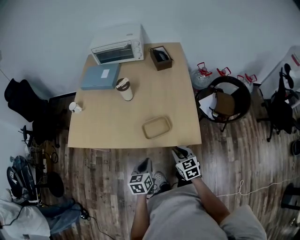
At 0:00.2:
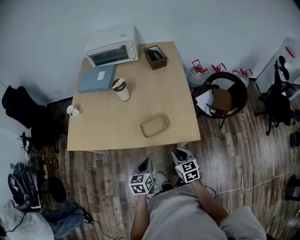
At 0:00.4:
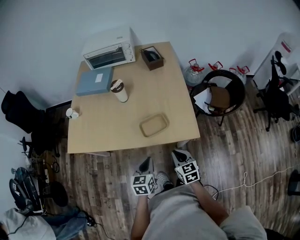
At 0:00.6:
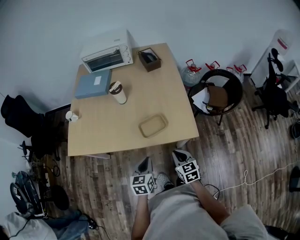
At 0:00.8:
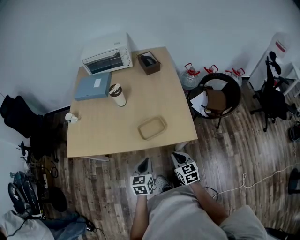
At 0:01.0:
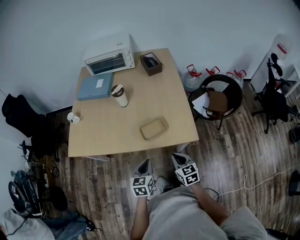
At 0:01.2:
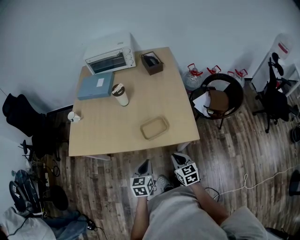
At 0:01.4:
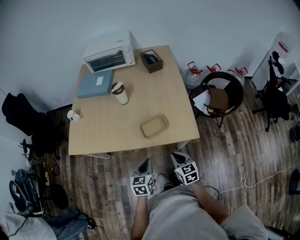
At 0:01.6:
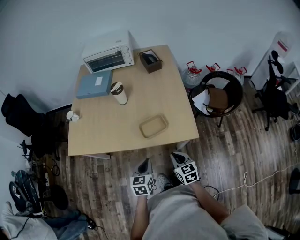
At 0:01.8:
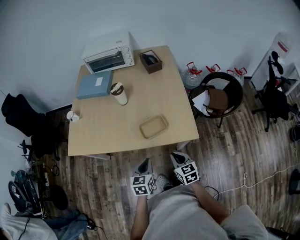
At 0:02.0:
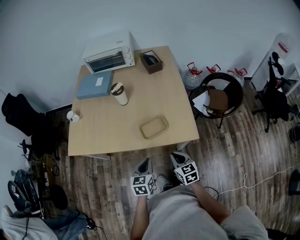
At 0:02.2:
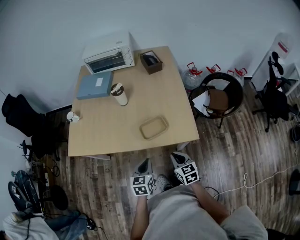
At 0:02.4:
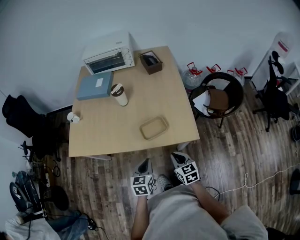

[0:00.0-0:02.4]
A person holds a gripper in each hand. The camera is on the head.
0:00.0 to 0:01.2: The right gripper travels backward by some 5 cm.
0:01.2 to 0:02.4: Both grippers stay about where they are.

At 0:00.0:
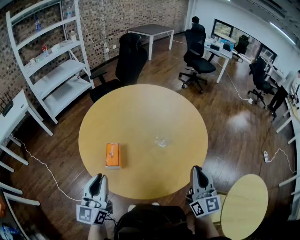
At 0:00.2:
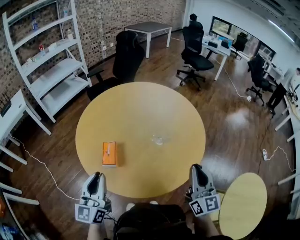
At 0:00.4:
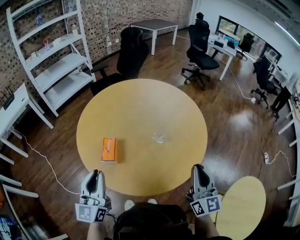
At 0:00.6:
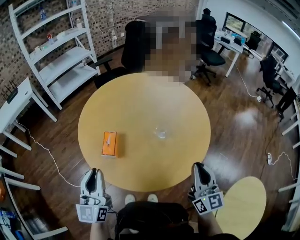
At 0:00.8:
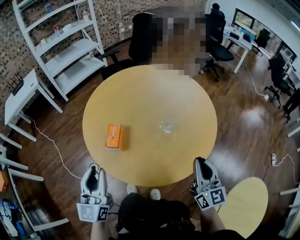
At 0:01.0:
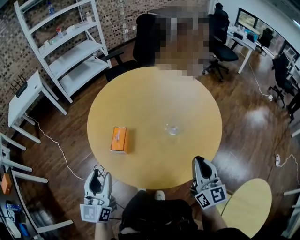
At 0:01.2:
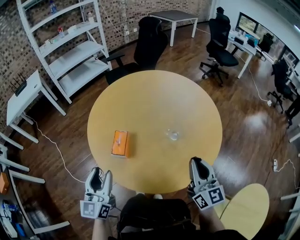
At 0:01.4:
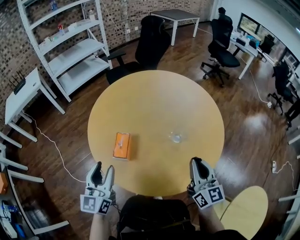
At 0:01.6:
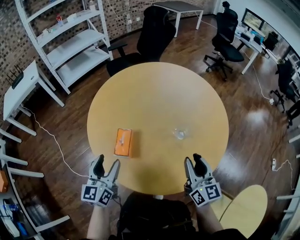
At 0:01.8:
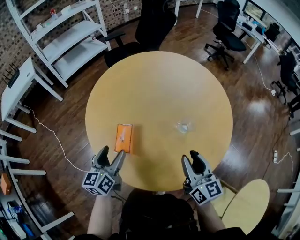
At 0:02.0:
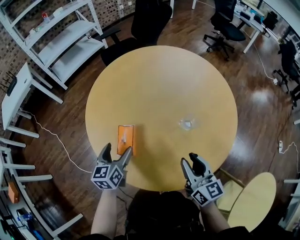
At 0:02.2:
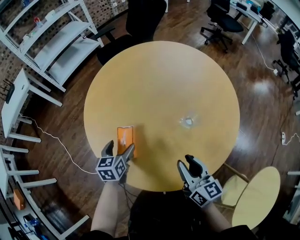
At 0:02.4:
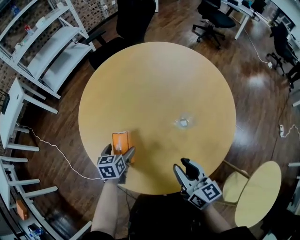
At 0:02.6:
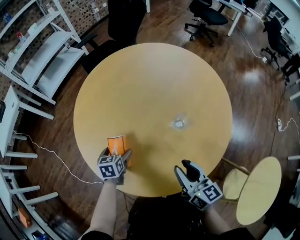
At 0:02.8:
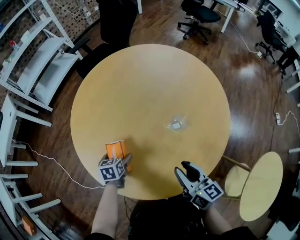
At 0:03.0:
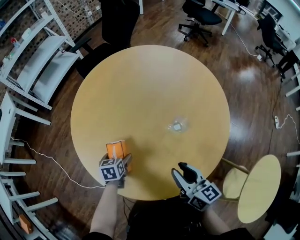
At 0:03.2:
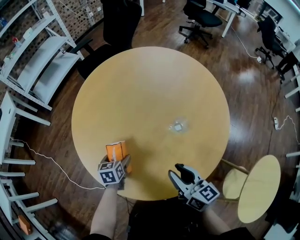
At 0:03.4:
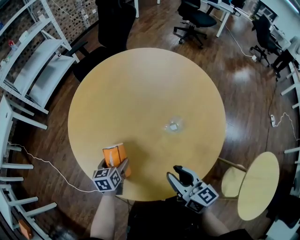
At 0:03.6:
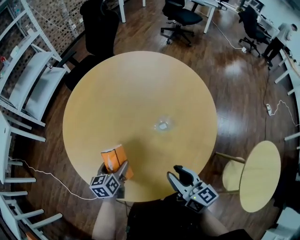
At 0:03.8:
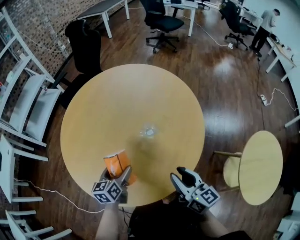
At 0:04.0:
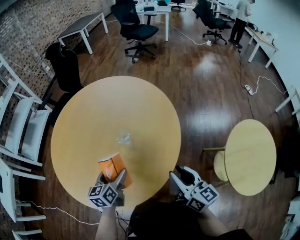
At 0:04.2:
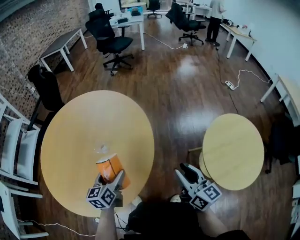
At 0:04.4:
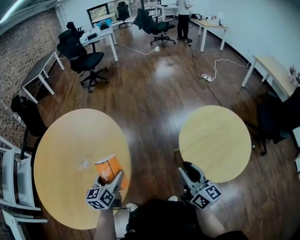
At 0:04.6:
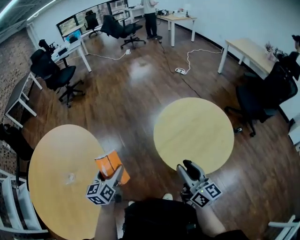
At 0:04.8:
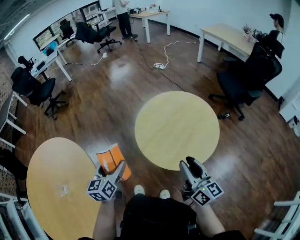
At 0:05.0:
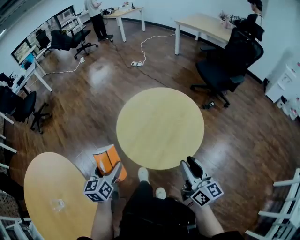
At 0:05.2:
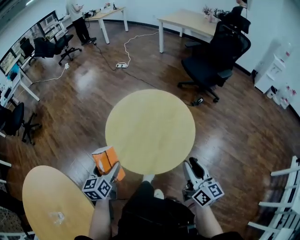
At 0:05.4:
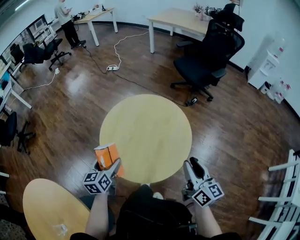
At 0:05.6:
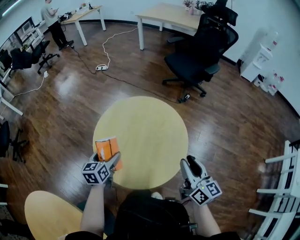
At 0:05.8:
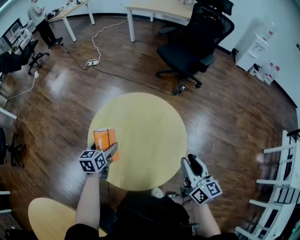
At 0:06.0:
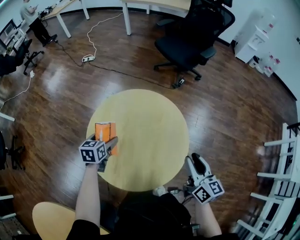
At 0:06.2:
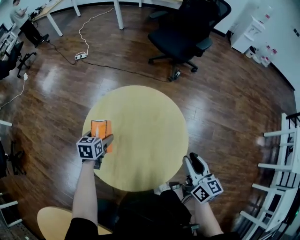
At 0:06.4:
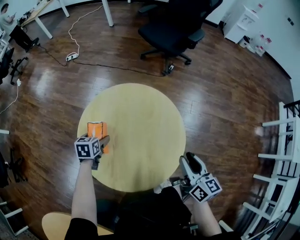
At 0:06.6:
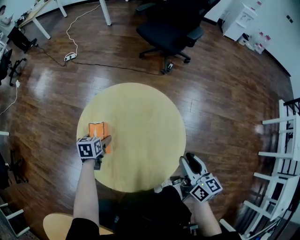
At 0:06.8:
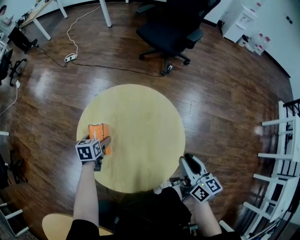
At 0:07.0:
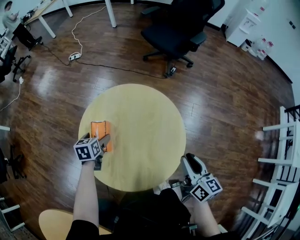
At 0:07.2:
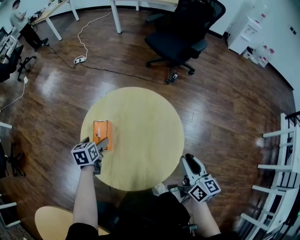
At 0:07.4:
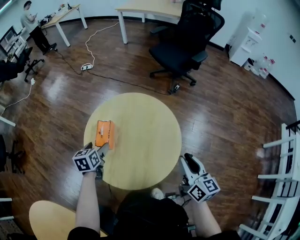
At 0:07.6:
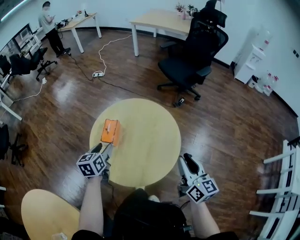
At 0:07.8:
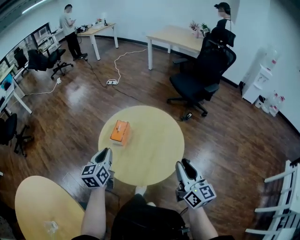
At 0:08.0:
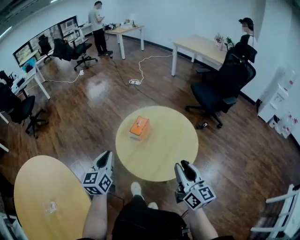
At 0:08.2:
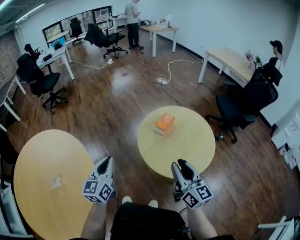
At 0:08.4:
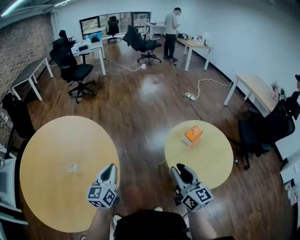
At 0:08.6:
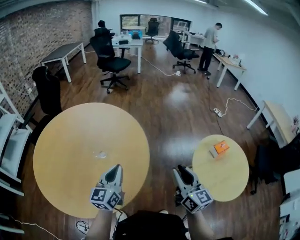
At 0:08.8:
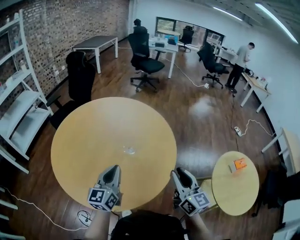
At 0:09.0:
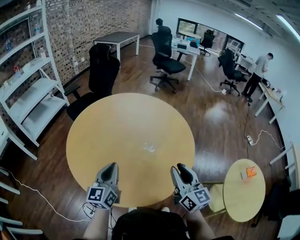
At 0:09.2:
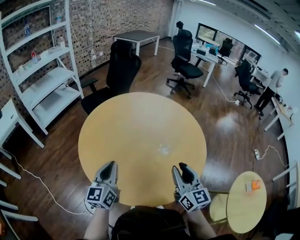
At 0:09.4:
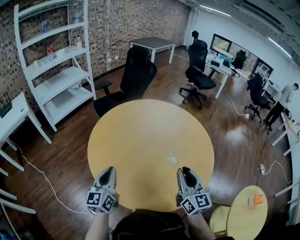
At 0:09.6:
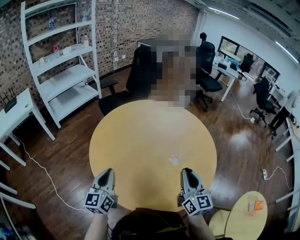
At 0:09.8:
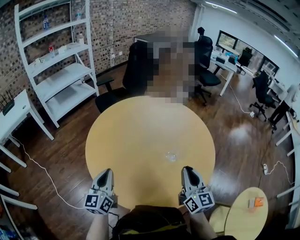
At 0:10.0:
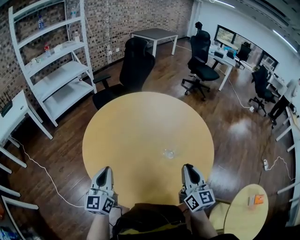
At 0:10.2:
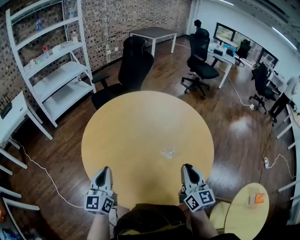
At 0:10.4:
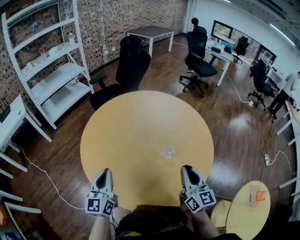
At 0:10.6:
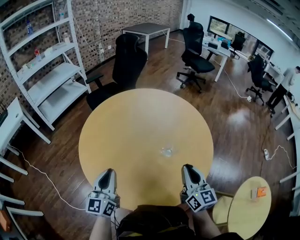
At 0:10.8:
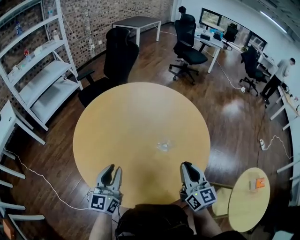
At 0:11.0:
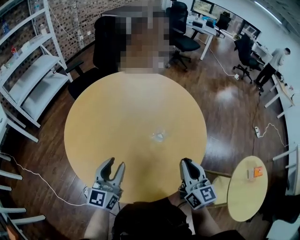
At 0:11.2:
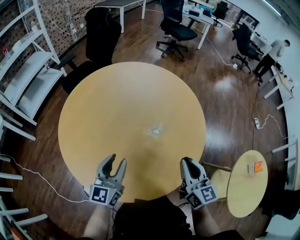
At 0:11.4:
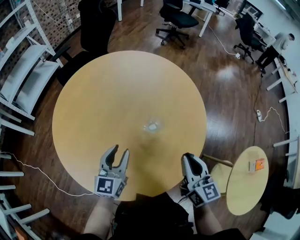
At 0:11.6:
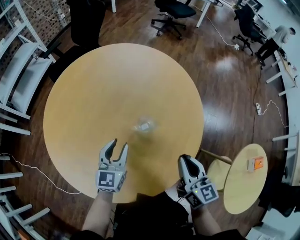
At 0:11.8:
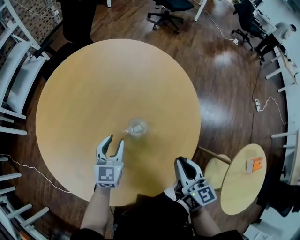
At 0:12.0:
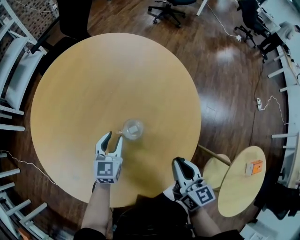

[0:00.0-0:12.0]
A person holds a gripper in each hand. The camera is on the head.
0:00.0 to 0:01.6: The two grippers go approximately 10 cm forward and downward. The left gripper opens its fingers. The right gripper turns by approximately 20 degrees, and opens.
0:01.6 to 0:03.0: The left gripper goes some 25 cm downward and forward, angles its fingers downward, by roughly 40 degrees, and opens up; the right gripper moves downward and to the left, some 10 cm.
0:03.0 to 0:04.4: Both grippers are carried about 40 cm. The left gripper points its fingers some 30 degrees further upward. The right gripper changes its angle by approximately 50 degrees.
0:04.4 to 0:06.0: The right gripper moves roughly 40 cm, and turns by some 70 degrees. The left gripper shifts by some 70 cm, and changes its angle by roughly 70 degrees.
0:06.0 to 0:07.6: The left gripper is displaced backward and upward by roughly 15 cm, swivels approximately 20 degrees, and closes its fingers; the right gripper travels upward by some 5 cm.
0:07.6 to 0:09.0: The pair of grippers is taken some 80 cm. The right gripper swivels about 90 degrees. The left gripper points its fingers approximately 30 degrees further upward, and closes.
0:09.0 to 0:10.4: The left gripper is displaced to the left by some 10 cm, and changes its angle by roughly 20 degrees. Meanwhile the right gripper moves forward, roughly 5 cm, and closes its fingers.
0:10.4 to 0:12.0: The right gripper moves downward and to the right, some 15 cm, and turns by approximately 20 degrees. The left gripper shifts roughly 35 cm to the right, forward and downward, and rotates roughly 30 degrees.

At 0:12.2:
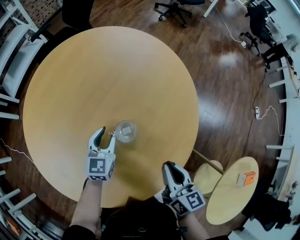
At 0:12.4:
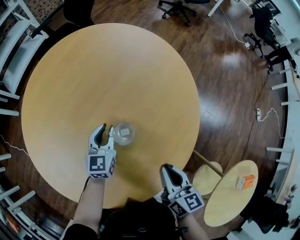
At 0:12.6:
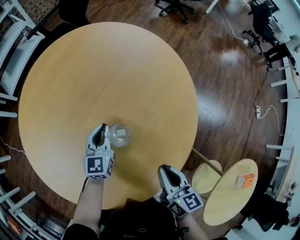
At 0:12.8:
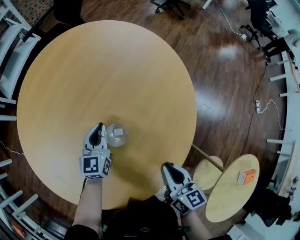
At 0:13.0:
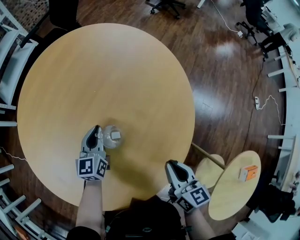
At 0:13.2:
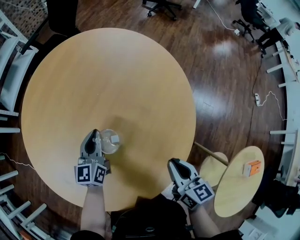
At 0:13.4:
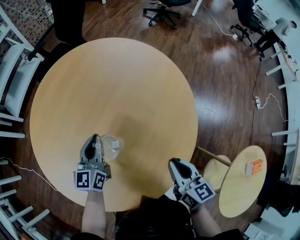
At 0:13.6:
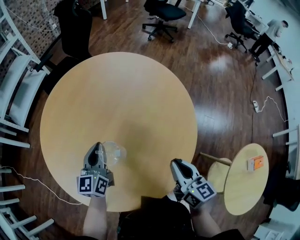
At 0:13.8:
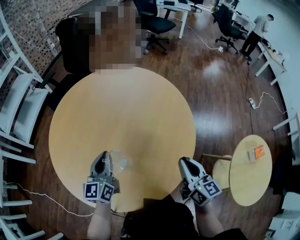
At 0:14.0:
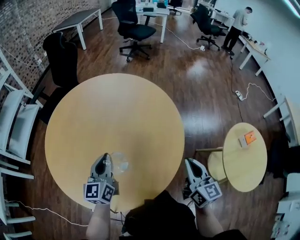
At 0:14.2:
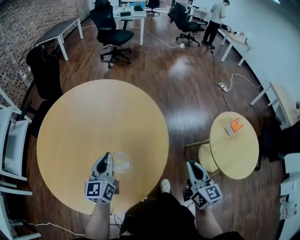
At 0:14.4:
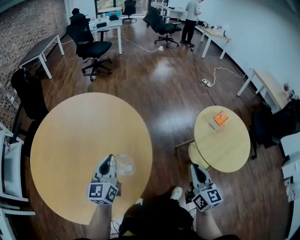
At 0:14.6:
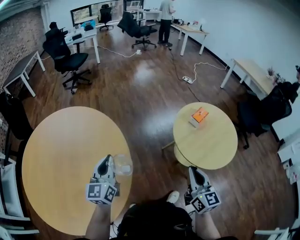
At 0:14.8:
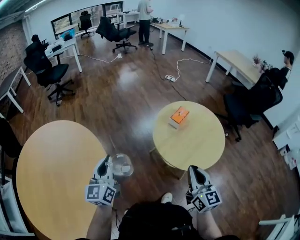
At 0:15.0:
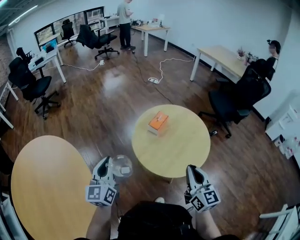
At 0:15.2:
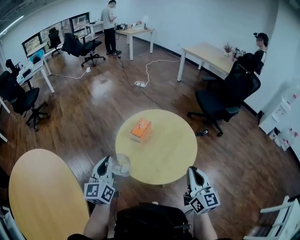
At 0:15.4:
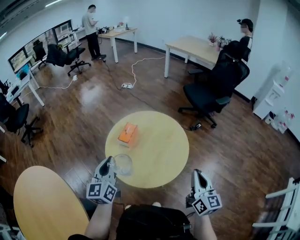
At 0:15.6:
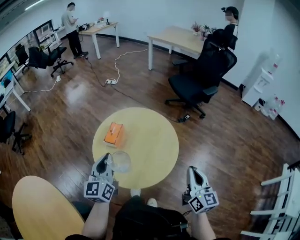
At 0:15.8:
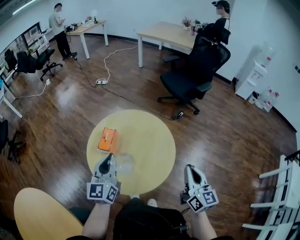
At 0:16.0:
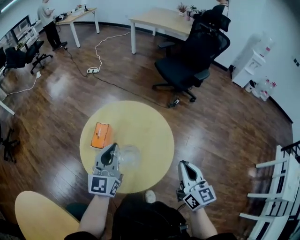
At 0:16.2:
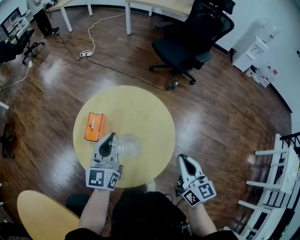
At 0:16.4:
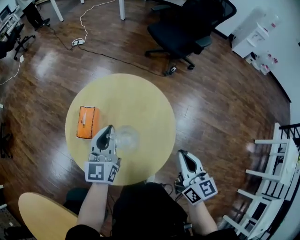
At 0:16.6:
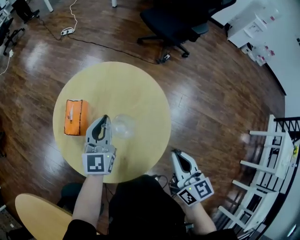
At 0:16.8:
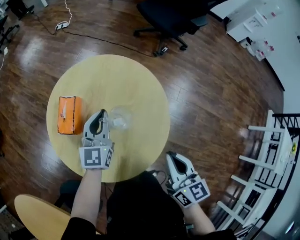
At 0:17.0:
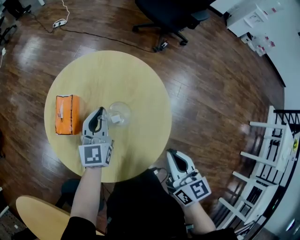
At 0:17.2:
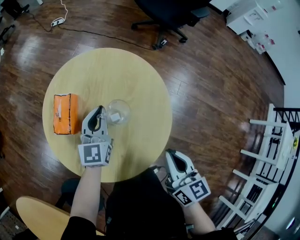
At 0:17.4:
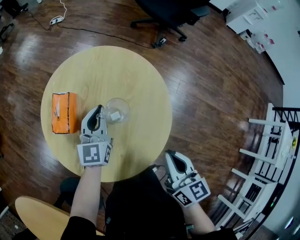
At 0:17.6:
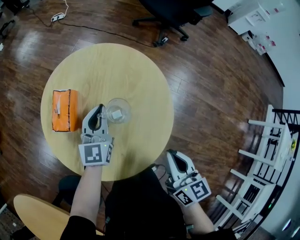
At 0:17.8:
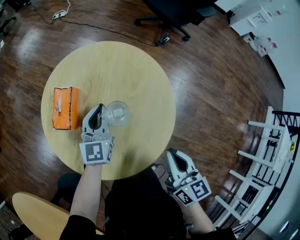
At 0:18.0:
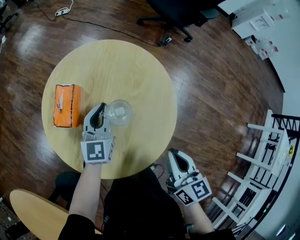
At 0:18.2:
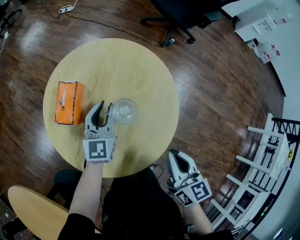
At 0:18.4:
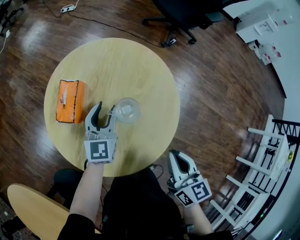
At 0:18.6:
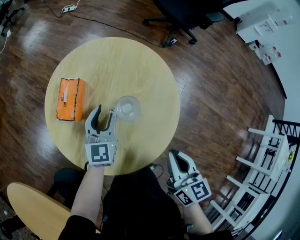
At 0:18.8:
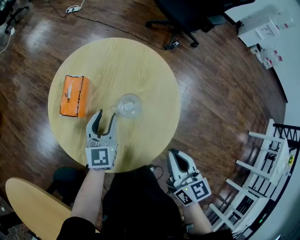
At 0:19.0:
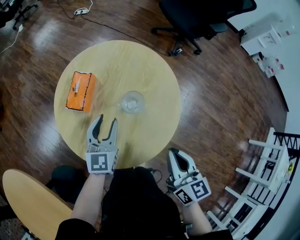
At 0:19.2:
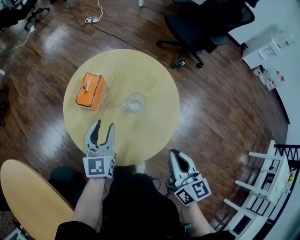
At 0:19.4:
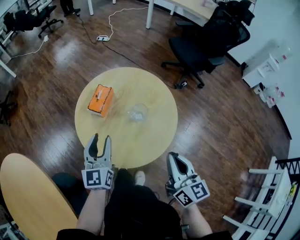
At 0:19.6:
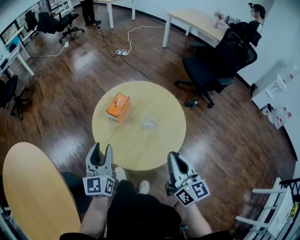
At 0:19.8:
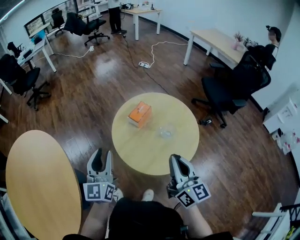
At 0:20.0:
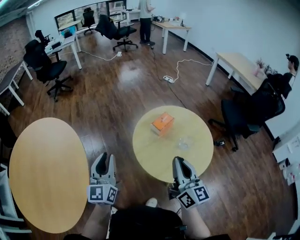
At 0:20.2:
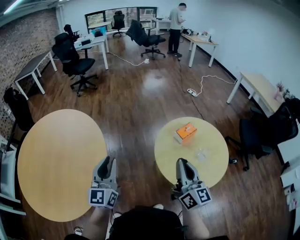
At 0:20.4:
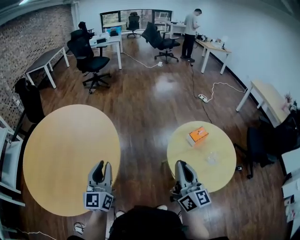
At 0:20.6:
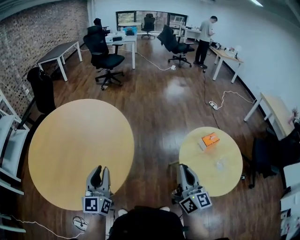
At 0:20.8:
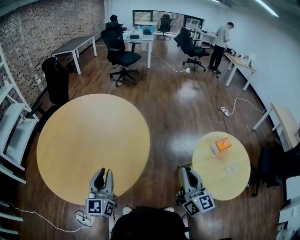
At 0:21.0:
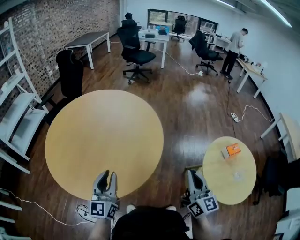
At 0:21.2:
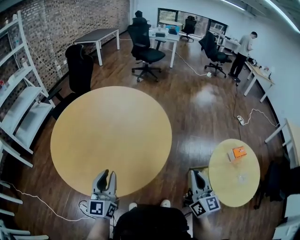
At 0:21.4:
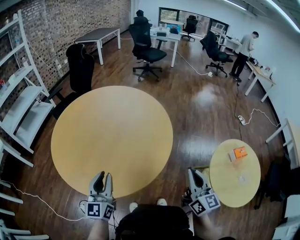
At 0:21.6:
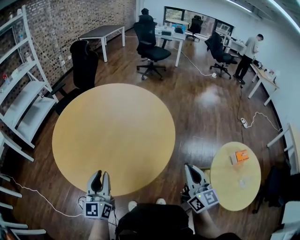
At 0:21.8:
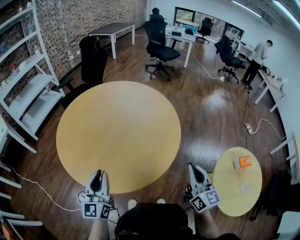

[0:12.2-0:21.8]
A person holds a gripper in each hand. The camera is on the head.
0:12.2 to 0:13.8: The left gripper is displaced upward, to the left and backward by approximately 20 cm, and turns by about 20 degrees. Meanwhile the right gripper moves upward, some 10 cm.
0:13.8 to 0:15.4: The pair of grippers is taken some 70 cm. The right gripper rotates approximately 80 degrees. Meanwhile the left gripper swivels roughly 60 degrees.
0:15.4 to 0:17.0: The right gripper is displaced downward and forward by some 15 cm, and changes its angle by some 20 degrees, while the left gripper is displaced forward, downward and to the right by roughly 35 cm, and turns by about 30 degrees.
0:17.0 to 0:18.6: The left gripper moves about 5 cm, and opens its fingers.
0:18.6 to 0:20.2: The right gripper moves roughly 30 cm, and tilts its fingers some 40 degrees upward. Meanwhile the left gripper changes place by approximately 60 cm, and rotates approximately 60 degrees.
0:20.2 to 0:21.8: The left gripper ends up roughly 40 cm from where it was, and turns by about 40 degrees. The right gripper shifts by approximately 30 cm, and rotates some 40 degrees.
